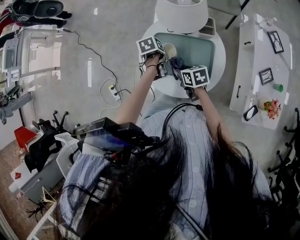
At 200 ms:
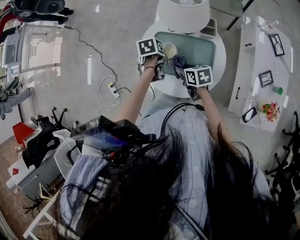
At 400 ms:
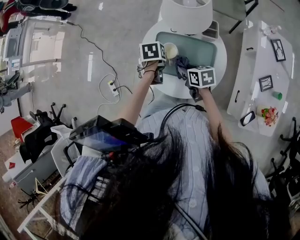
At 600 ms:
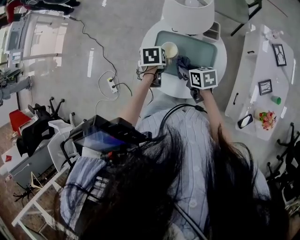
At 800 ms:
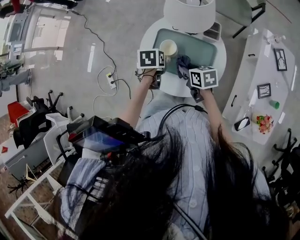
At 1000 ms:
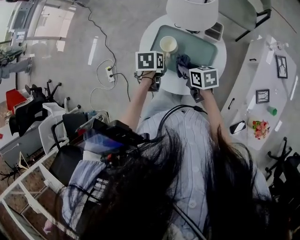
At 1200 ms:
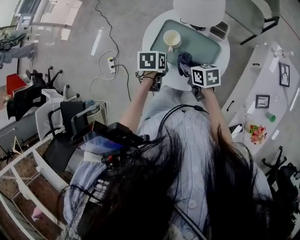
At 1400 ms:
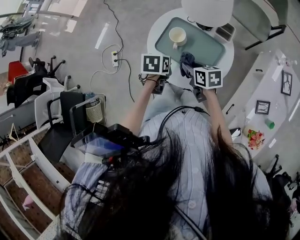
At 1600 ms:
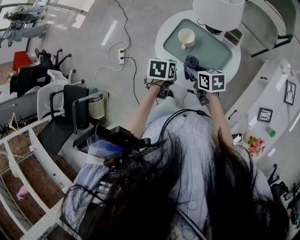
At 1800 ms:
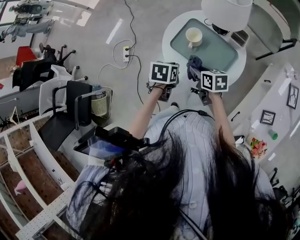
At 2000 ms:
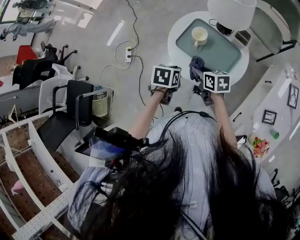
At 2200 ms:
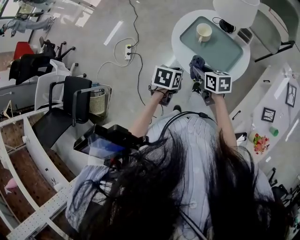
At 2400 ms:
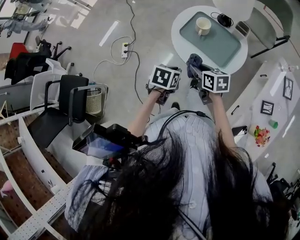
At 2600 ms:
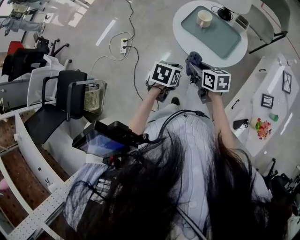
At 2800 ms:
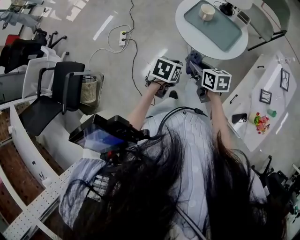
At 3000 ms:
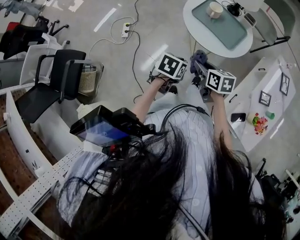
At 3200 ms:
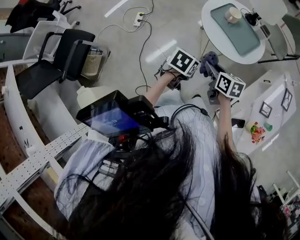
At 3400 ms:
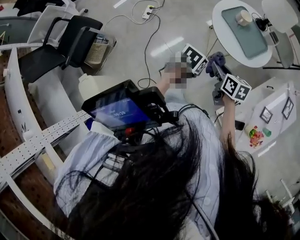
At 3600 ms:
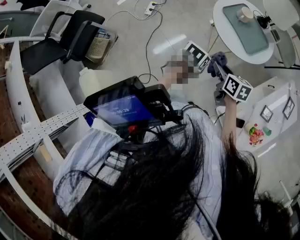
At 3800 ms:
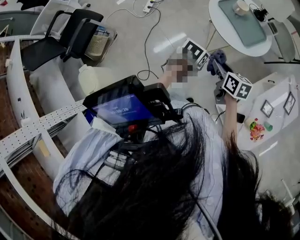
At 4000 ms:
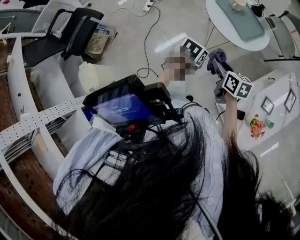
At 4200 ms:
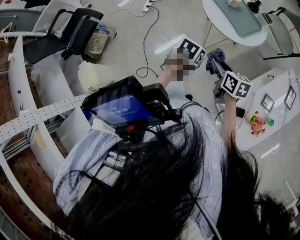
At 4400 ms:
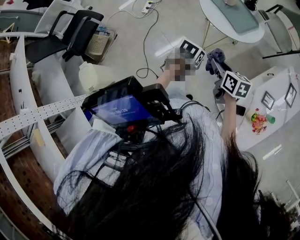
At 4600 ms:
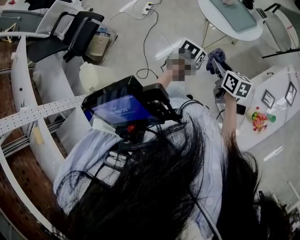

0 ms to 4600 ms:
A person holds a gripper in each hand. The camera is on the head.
0 ms to 1600 ms: The right gripper shifts by about 10 cm. Meanwhile the left gripper ends up some 15 cm from where it was.
1600 ms to 3000 ms: The right gripper travels backward and to the left by some 25 cm. Meanwhile the left gripper heads backward, covering about 25 cm.
3000 ms to 4600 ms: Both grippers travel together backward and to the right, roughly 20 cm.

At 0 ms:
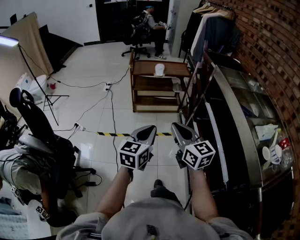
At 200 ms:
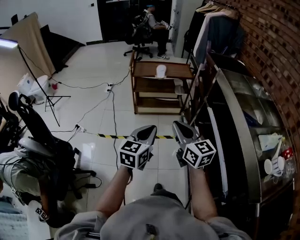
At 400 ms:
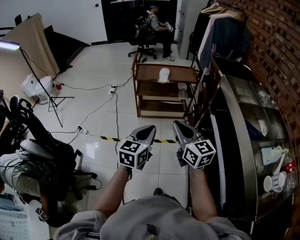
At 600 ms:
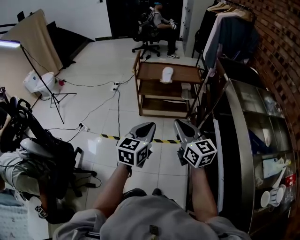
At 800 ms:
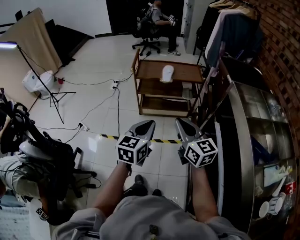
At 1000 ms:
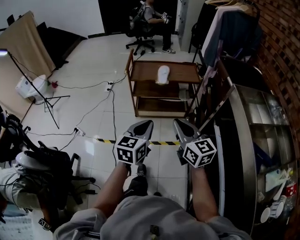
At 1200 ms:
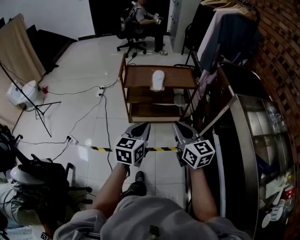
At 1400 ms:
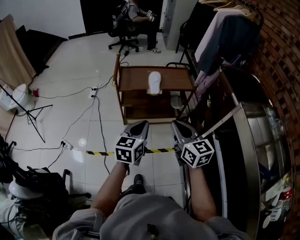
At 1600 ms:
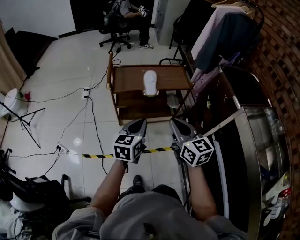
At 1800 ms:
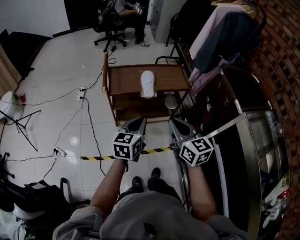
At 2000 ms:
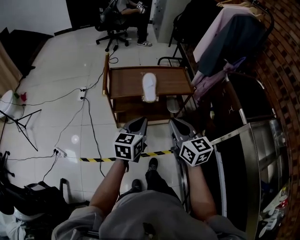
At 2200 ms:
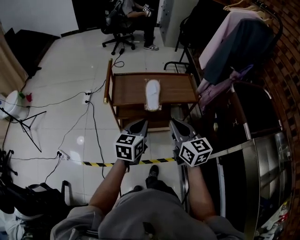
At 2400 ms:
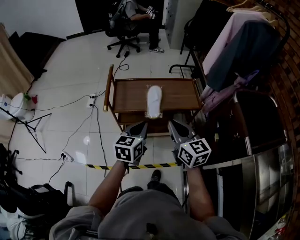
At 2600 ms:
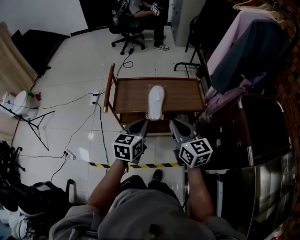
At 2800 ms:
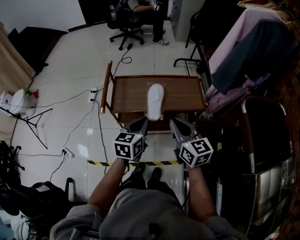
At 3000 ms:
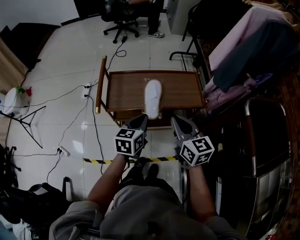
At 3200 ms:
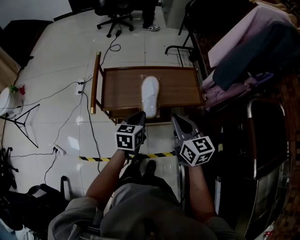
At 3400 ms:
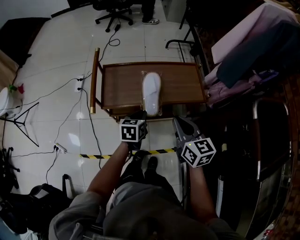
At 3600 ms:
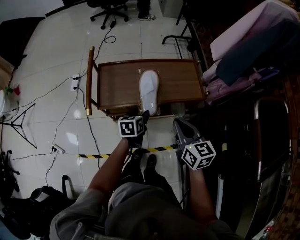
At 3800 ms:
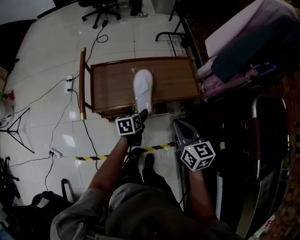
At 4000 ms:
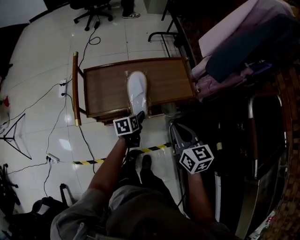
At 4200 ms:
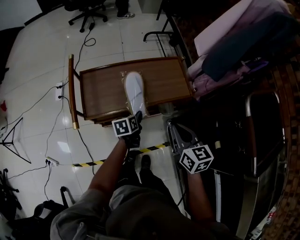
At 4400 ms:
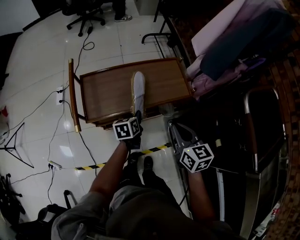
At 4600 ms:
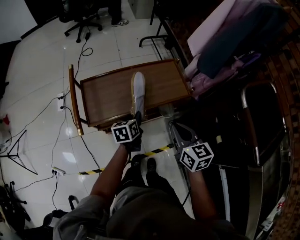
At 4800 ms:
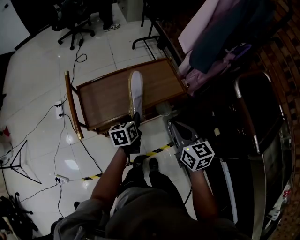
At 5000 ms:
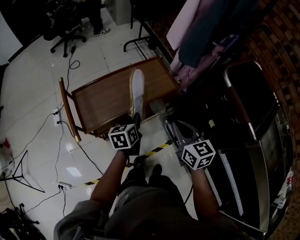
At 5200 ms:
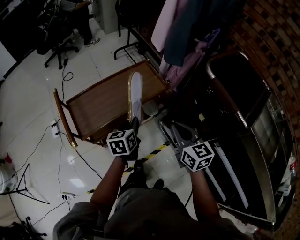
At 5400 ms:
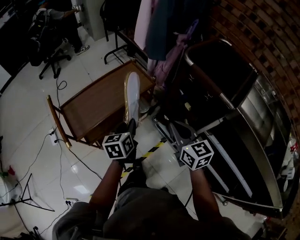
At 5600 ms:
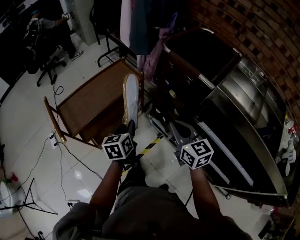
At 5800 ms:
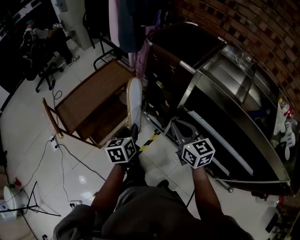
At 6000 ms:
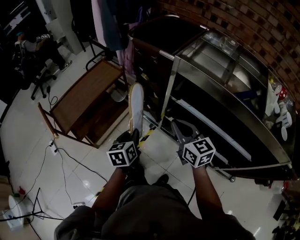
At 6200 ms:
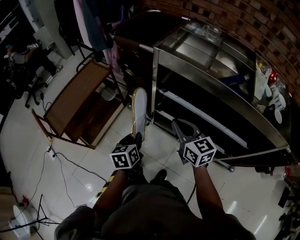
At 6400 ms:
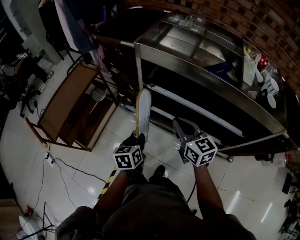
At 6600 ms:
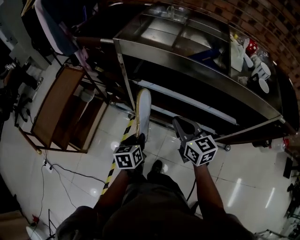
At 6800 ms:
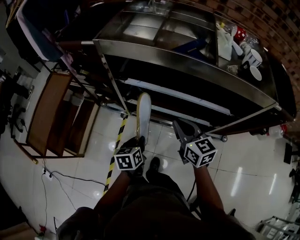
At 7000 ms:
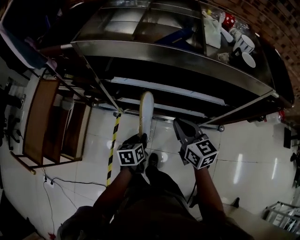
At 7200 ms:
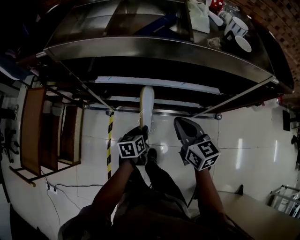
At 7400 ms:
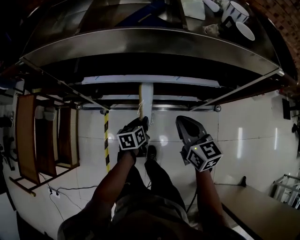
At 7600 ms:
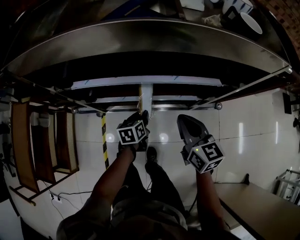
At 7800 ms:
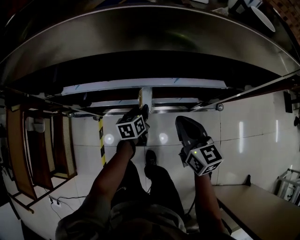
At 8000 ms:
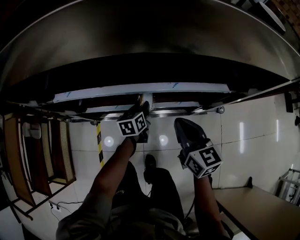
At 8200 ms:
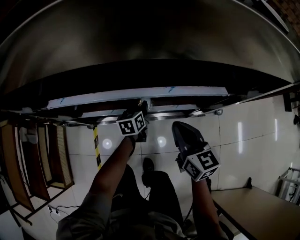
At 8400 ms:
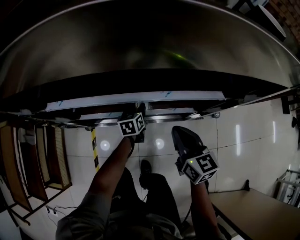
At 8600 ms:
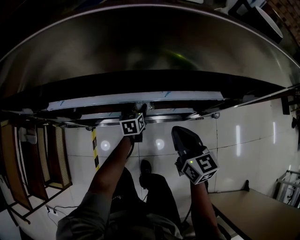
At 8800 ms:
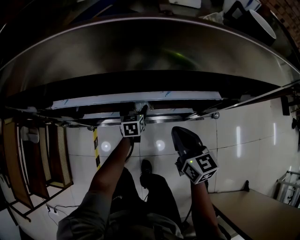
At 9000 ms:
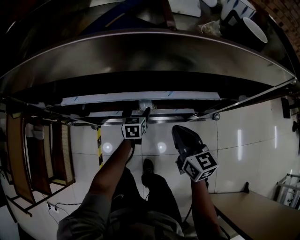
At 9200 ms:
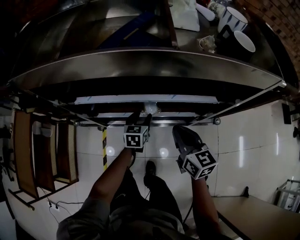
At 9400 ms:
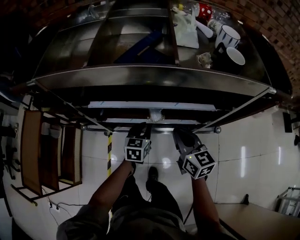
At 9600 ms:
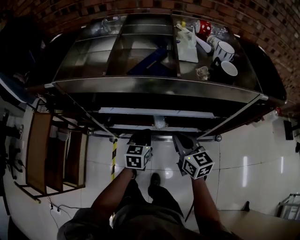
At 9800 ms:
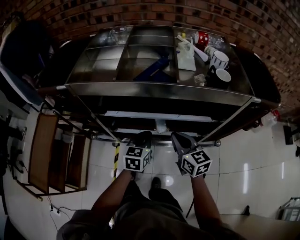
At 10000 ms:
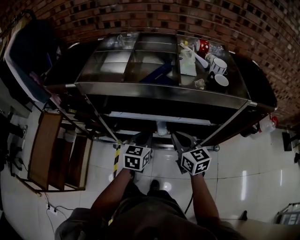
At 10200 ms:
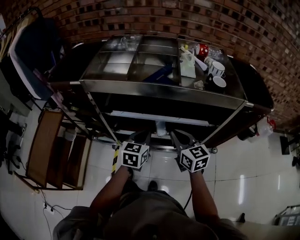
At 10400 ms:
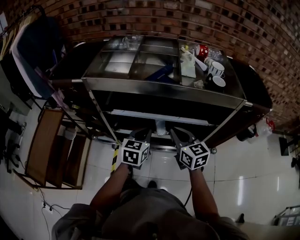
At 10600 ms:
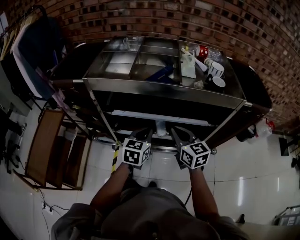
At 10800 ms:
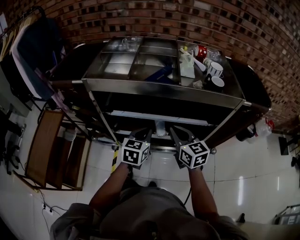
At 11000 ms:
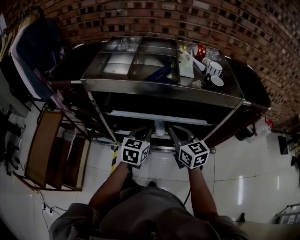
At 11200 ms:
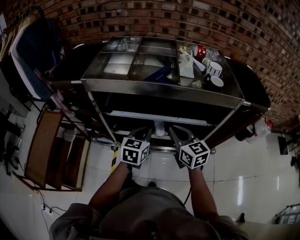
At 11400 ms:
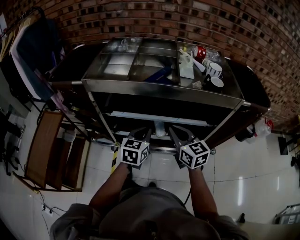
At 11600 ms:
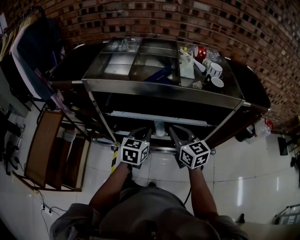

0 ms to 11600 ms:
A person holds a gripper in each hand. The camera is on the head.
0 ms to 1400 ms: Both grippers move forward, about 40 cm.
1400 ms to 2800 ms: The two grippers go roughly 30 cm forward.
2800 ms to 4400 ms: The left gripper is displaced downward and forward by about 25 cm, turns by approximately 30 degrees, and opens, then closes once more, while the right gripper shifts roughly 10 cm downward, and changes its angle by roughly 20 degrees.
4400 ms to 5800 ms: The left gripper moves backward, to the right and upward, approximately 35 cm, and turns by approximately 30 degrees; the right gripper moves backward and to the right, about 35 cm, and turns by approximately 30 degrees.
5800 ms to 7200 ms: The right gripper changes place by approximately 40 cm, and changes its angle by about 40 degrees, while the left gripper ends up some 50 cm from where it was, and changes its angle by roughly 50 degrees.
7200 ms to 8800 ms: The left gripper moves forward and downward, roughly 30 cm, swivels about 20 degrees, and opens its fingers. Meanwhile the right gripper heads downward, to the right and forward, covering some 15 cm.
8800 ms to 10200 ms: The left gripper heads upward and backward, covering about 40 cm, and closes up; the right gripper travels upward and to the left by roughly 25 cm.
10200 ms to 11600 ms: The grippers make only small movements.

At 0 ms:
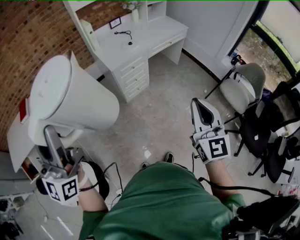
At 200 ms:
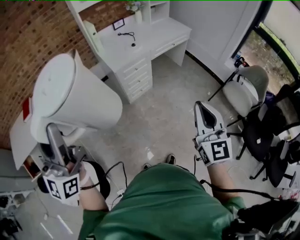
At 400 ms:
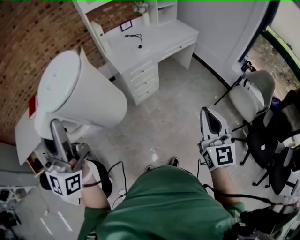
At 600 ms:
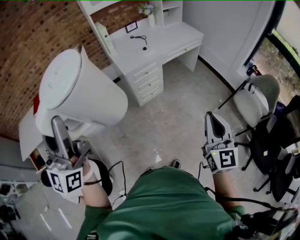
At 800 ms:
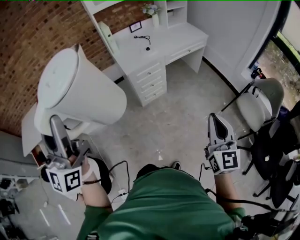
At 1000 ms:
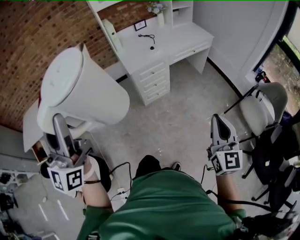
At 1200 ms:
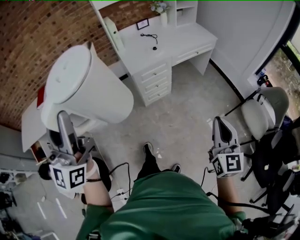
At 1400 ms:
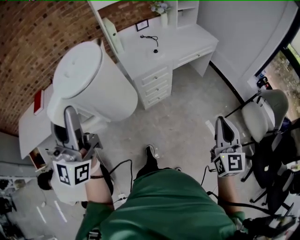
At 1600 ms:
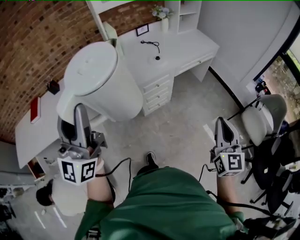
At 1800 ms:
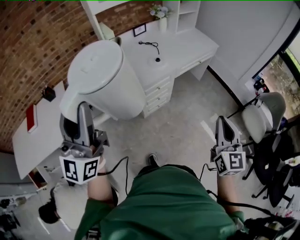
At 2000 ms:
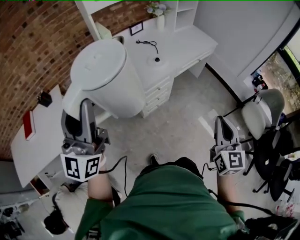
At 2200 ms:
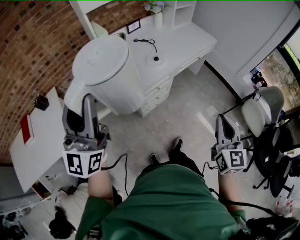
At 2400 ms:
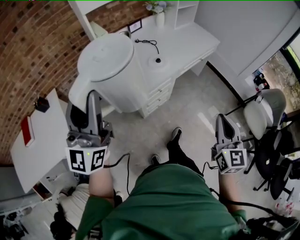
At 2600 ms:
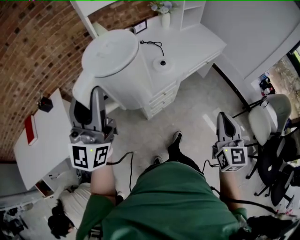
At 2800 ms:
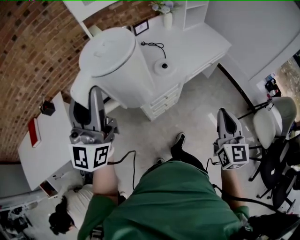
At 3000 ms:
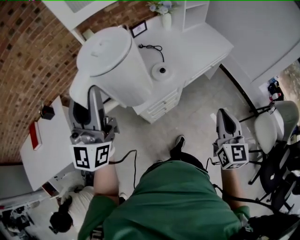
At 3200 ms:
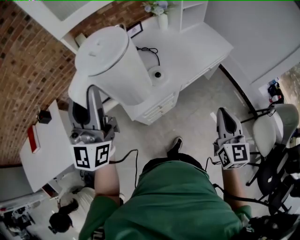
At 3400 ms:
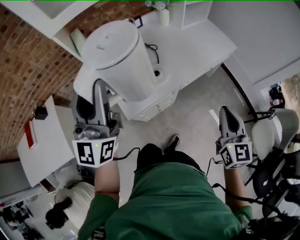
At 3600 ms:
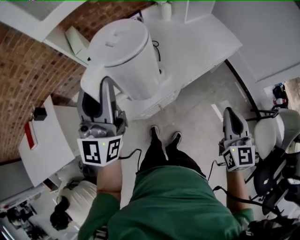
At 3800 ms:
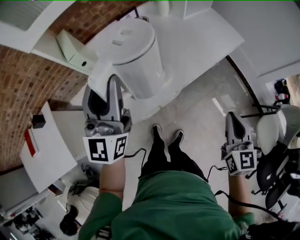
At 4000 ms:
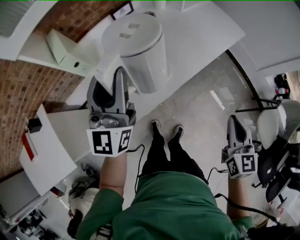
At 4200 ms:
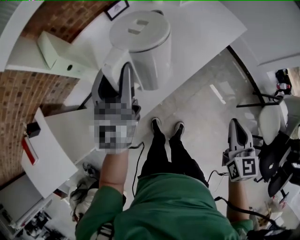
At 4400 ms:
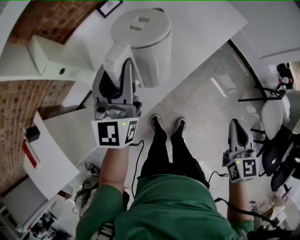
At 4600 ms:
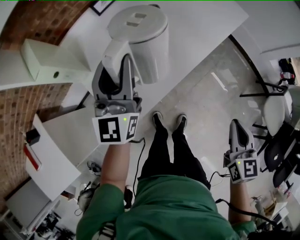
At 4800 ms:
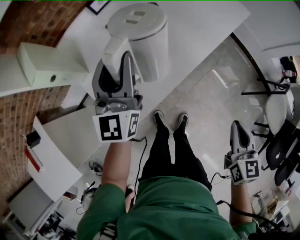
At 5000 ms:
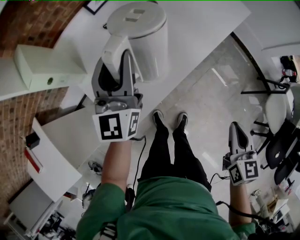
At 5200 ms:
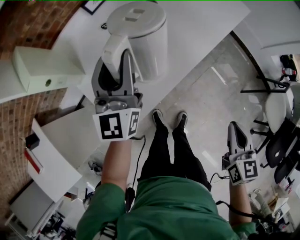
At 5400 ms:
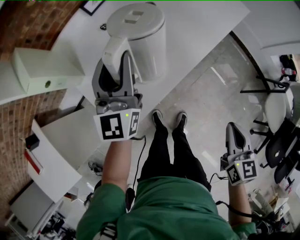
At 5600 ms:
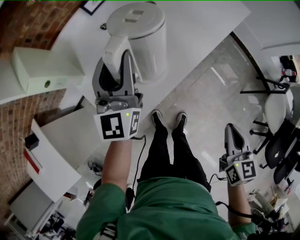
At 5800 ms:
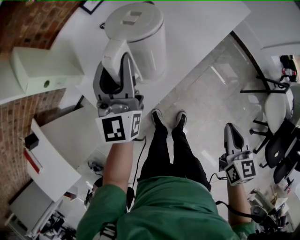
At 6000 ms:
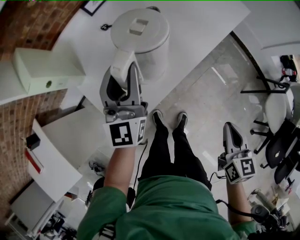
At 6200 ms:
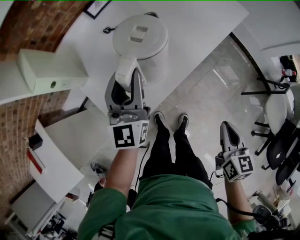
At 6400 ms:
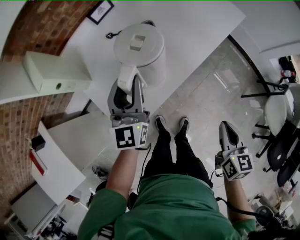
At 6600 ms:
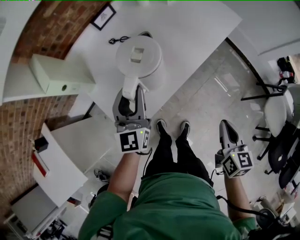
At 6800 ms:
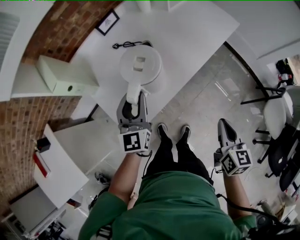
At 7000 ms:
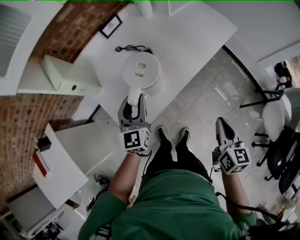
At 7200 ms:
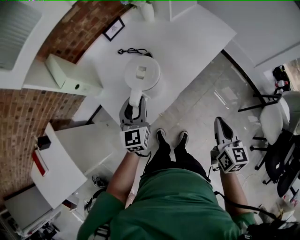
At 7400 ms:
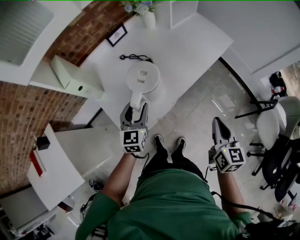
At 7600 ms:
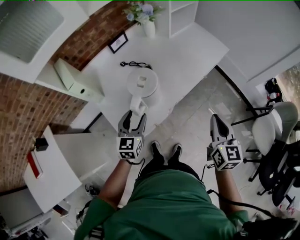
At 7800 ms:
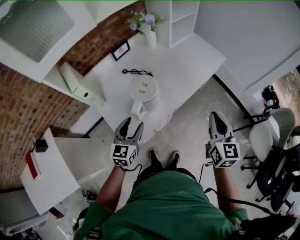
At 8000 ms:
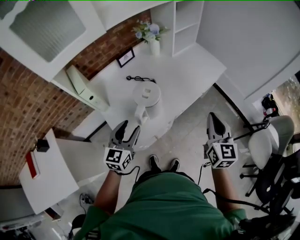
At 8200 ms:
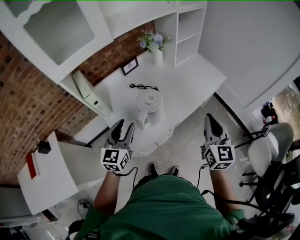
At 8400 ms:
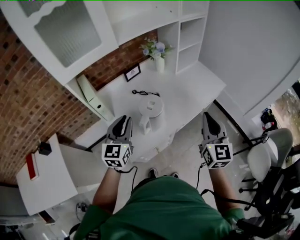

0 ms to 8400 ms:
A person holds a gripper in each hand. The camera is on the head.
0 ms to 1400 ms: The right gripper is displaced forward, to the right and downward by some 15 cm, while the left gripper goes about 15 cm forward.
1400 ms to 2800 ms: The left gripper travels forward by approximately 35 cm, while the right gripper heads forward and to the left, covering roughly 30 cm.
2800 ms to 4200 ms: The right gripper heads forward, downward and to the right, covering roughly 20 cm; the left gripper moves forward, downward and to the right, about 40 cm.
4200 ms to 5600 ms: The right gripper goes some 10 cm downward. The left gripper goes roughly 10 cm downward and forward.
5600 ms to 7000 ms: The left gripper is displaced backward and downward by about 10 cm.
7000 ms to 8400 ms: The grippers both shift upward by approximately 20 cm. The right gripper rotates roughly 40 degrees. The left gripper opens, then closes once more.
